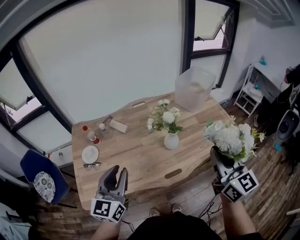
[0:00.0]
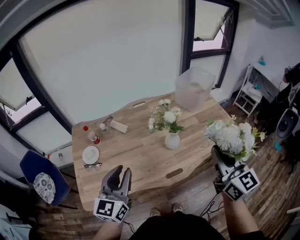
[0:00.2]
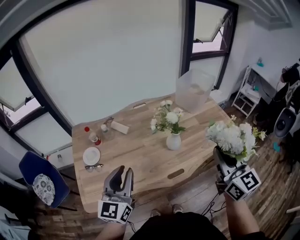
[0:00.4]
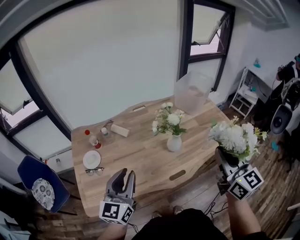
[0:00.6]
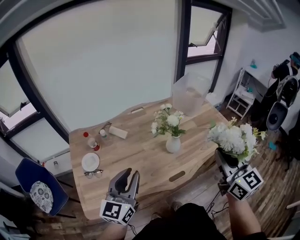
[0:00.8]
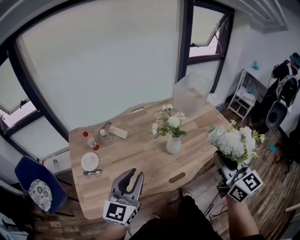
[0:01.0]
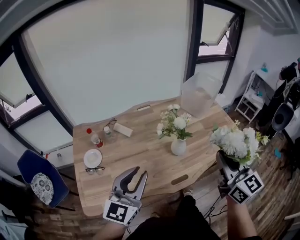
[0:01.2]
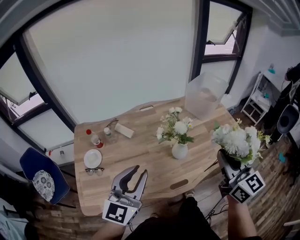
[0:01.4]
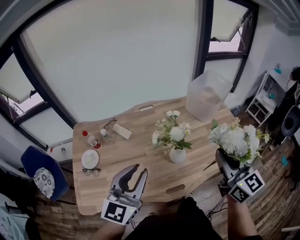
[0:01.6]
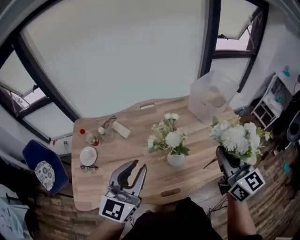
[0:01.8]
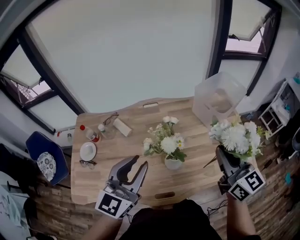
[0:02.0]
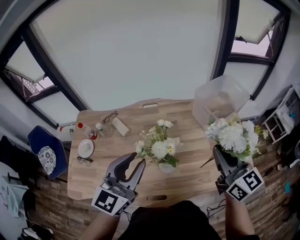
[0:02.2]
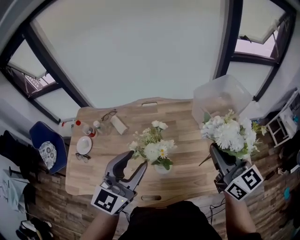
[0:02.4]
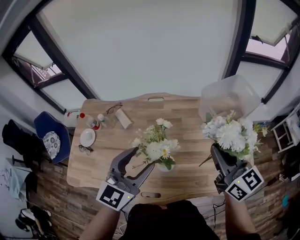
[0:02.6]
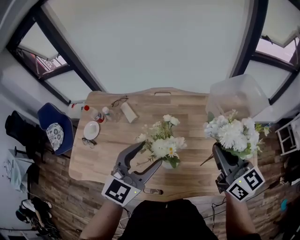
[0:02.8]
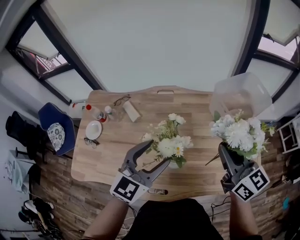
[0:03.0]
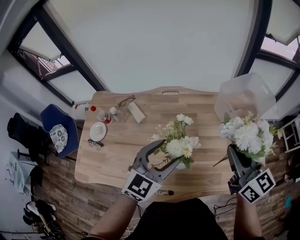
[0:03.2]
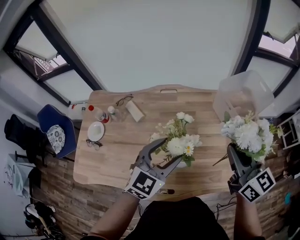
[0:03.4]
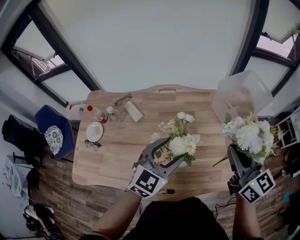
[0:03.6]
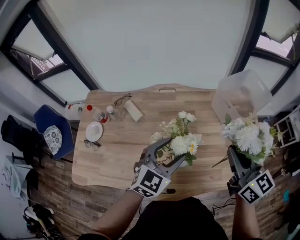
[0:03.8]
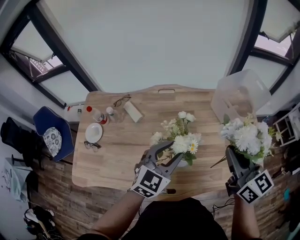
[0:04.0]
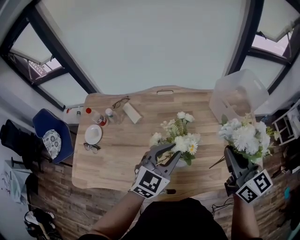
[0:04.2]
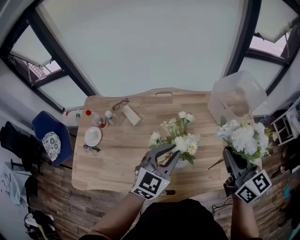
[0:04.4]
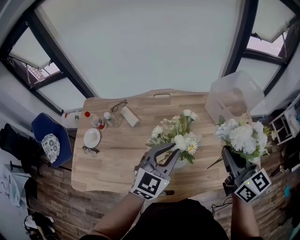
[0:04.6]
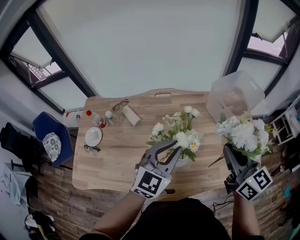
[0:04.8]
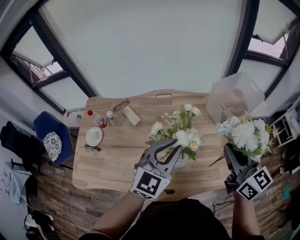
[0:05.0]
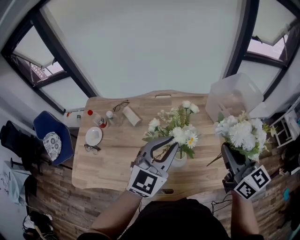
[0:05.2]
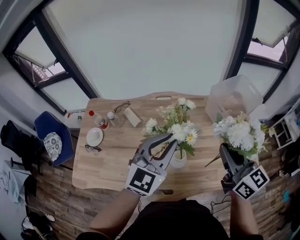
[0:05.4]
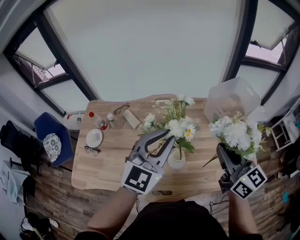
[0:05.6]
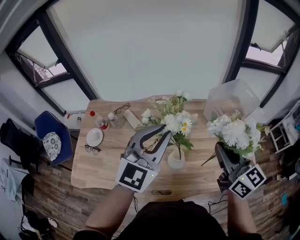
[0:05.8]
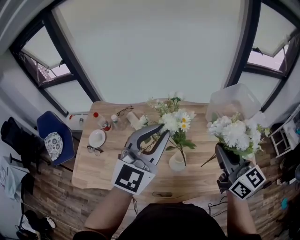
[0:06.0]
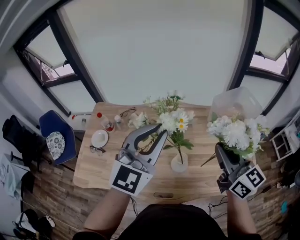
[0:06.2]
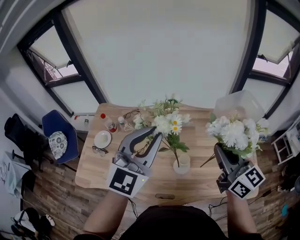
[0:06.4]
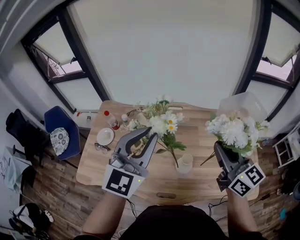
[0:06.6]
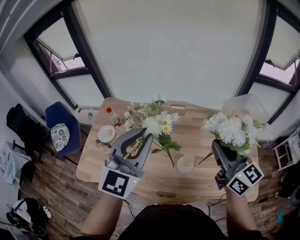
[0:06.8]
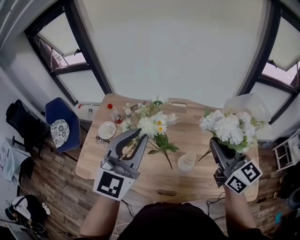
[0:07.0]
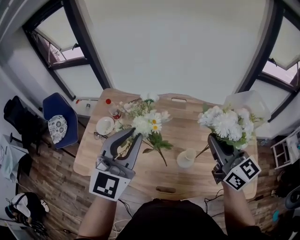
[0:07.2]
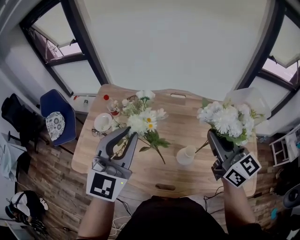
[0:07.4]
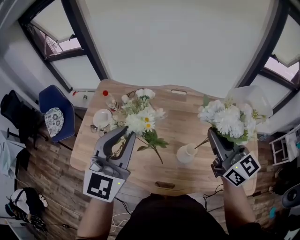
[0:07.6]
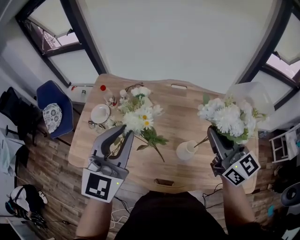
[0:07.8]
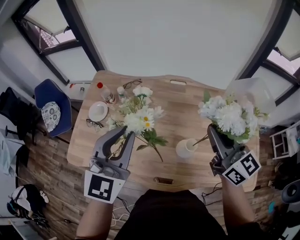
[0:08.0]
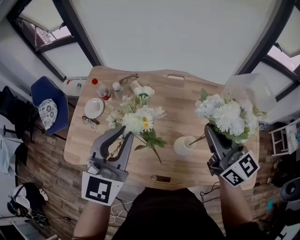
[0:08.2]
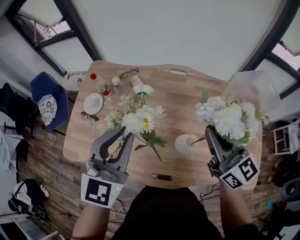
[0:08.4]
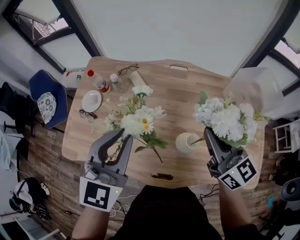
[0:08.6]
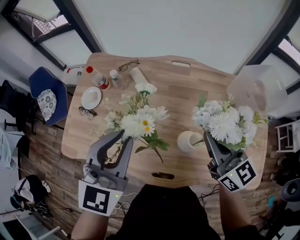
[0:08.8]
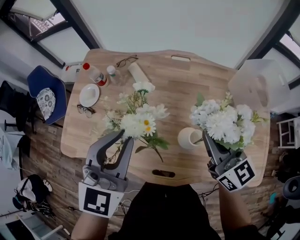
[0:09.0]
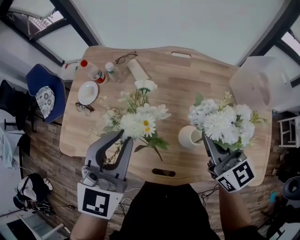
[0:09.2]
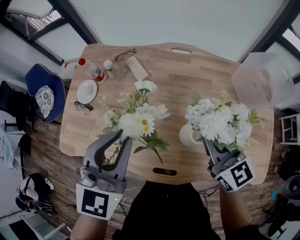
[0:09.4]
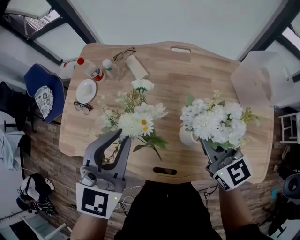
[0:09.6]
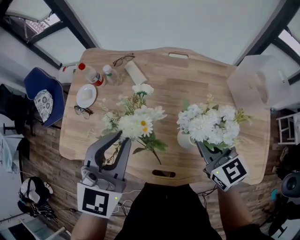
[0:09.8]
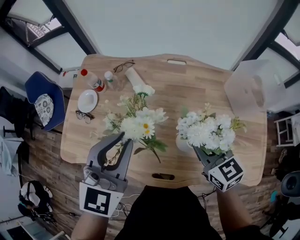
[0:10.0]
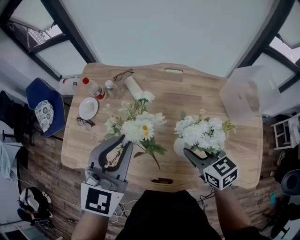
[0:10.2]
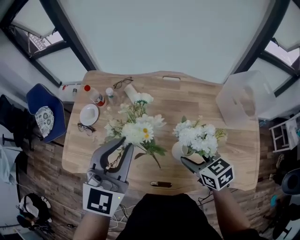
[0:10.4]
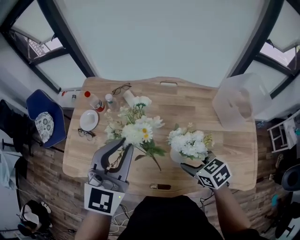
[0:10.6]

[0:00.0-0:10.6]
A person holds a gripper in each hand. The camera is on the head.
0:00.0 to 0:01.6: The right gripper moves forward, roughly 10 cm; the left gripper is displaced forward and to the right by about 10 cm.
0:01.6 to 0:03.0: The right gripper is displaced forward and to the right by roughly 20 cm, and changes its angle by roughly 30 degrees. The left gripper moves to the right and forward, approximately 20 cm, and opens.
0:03.0 to 0:04.6: The left gripper closes.
0:04.6 to 0:06.0: The left gripper shifts about 15 cm upward, while the right gripper shifts by some 5 cm.
0:06.0 to 0:07.6: The left gripper travels to the left by about 15 cm, and turns by about 20 degrees. The right gripper is displaced to the left by some 10 cm.
0:07.6 to 0:09.0: Both grippers move downward, some 10 cm.
0:09.0 to 0:10.6: The right gripper shifts some 10 cm downward, points its fingers some 40 degrees further downward, and opens its fingers.

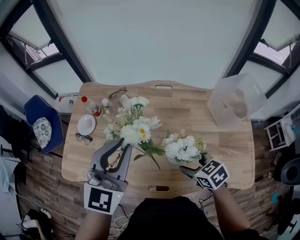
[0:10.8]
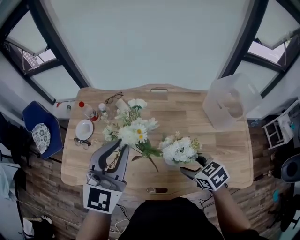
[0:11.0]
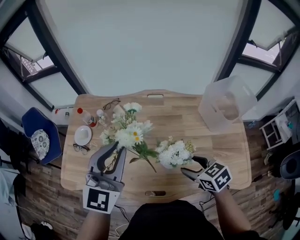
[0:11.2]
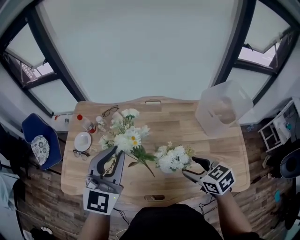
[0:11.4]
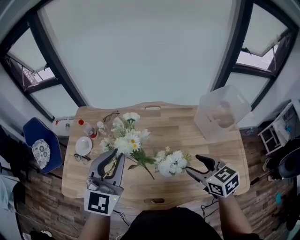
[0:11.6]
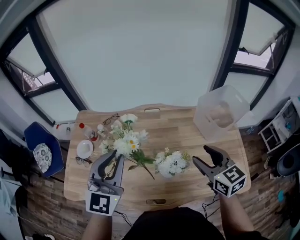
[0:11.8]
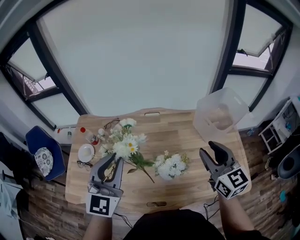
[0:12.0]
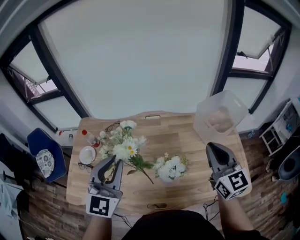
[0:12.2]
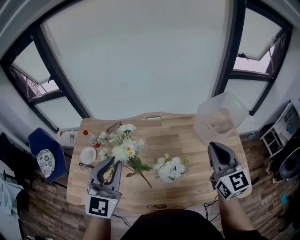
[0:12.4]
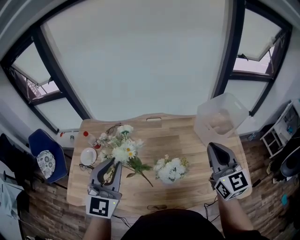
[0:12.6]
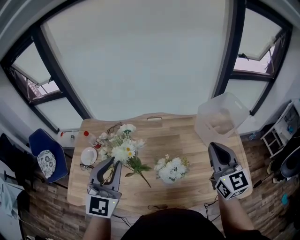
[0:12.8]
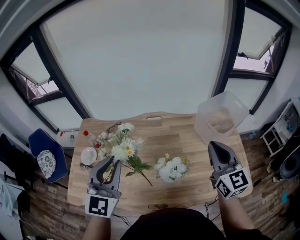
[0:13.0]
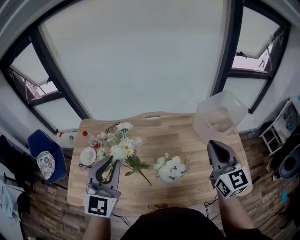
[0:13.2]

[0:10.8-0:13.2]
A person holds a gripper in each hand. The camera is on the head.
0:10.8 to 0:12.0: The right gripper goes approximately 25 cm upward and to the right, and angles its fingers upward, by some 40 degrees.
0:12.0 to 0:13.2: The right gripper closes its fingers.

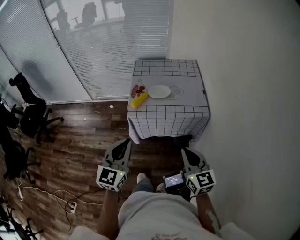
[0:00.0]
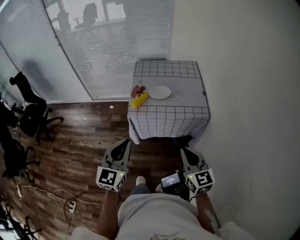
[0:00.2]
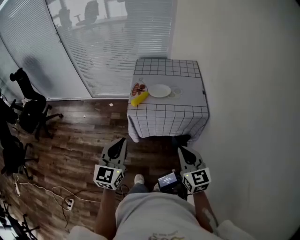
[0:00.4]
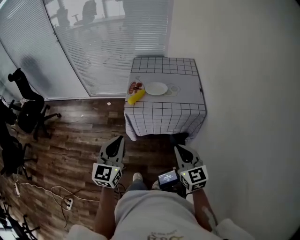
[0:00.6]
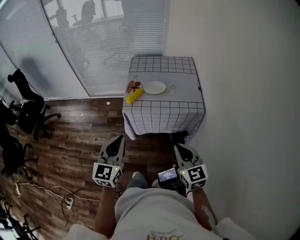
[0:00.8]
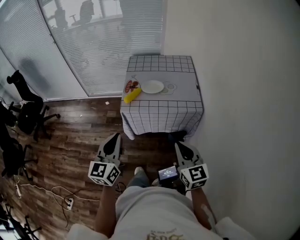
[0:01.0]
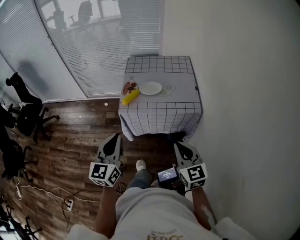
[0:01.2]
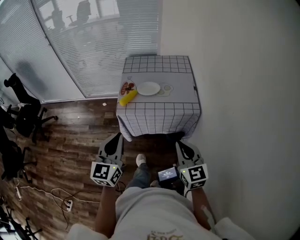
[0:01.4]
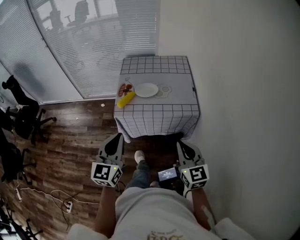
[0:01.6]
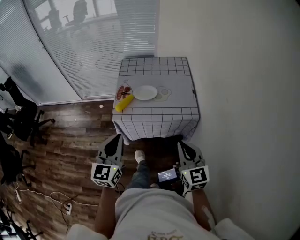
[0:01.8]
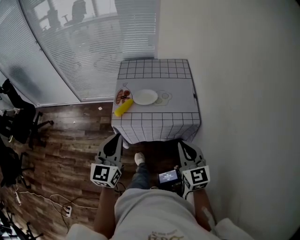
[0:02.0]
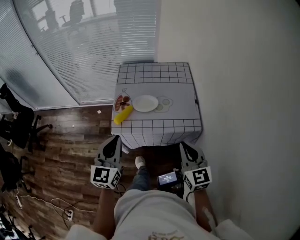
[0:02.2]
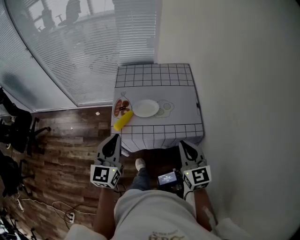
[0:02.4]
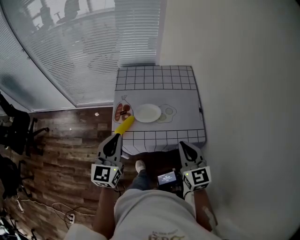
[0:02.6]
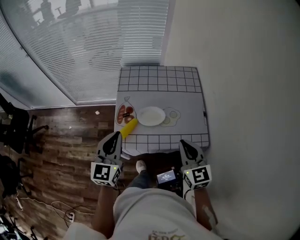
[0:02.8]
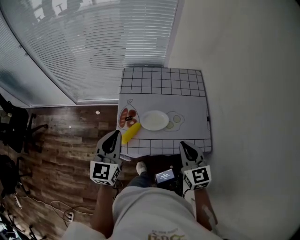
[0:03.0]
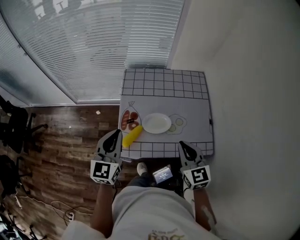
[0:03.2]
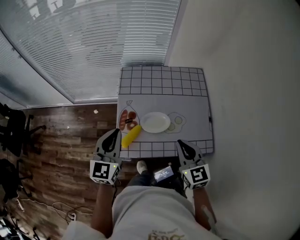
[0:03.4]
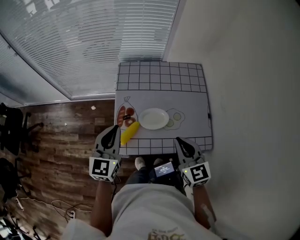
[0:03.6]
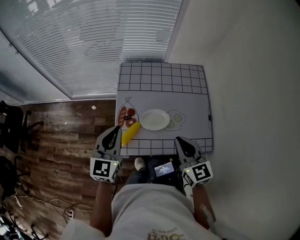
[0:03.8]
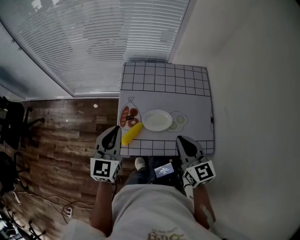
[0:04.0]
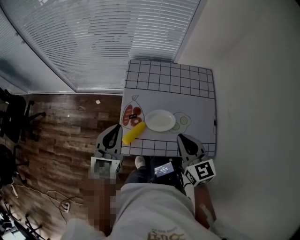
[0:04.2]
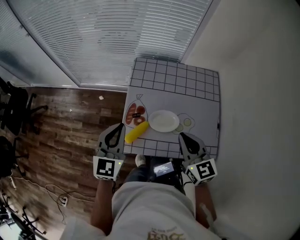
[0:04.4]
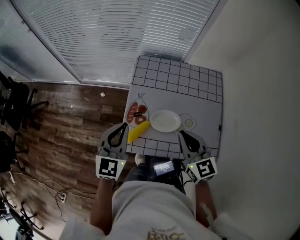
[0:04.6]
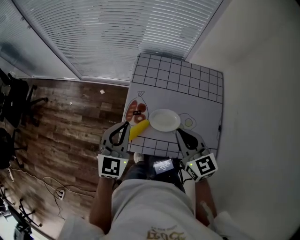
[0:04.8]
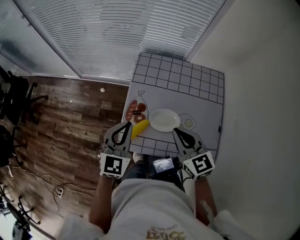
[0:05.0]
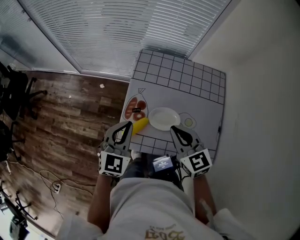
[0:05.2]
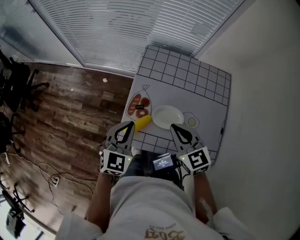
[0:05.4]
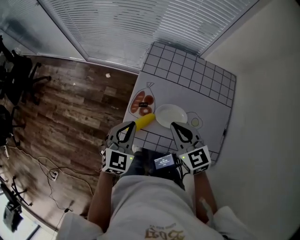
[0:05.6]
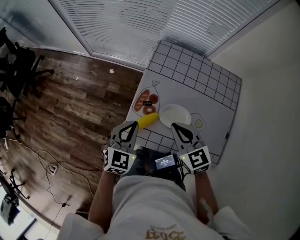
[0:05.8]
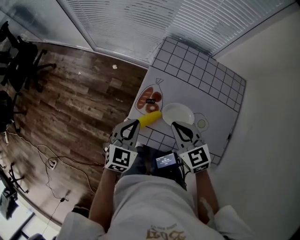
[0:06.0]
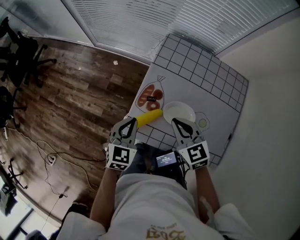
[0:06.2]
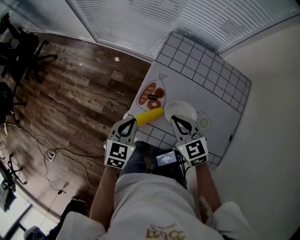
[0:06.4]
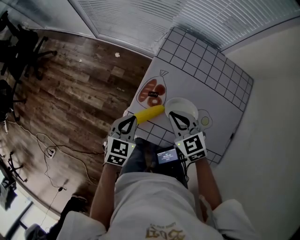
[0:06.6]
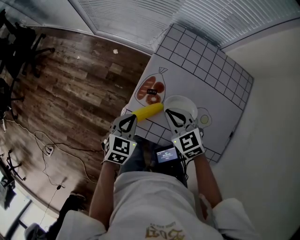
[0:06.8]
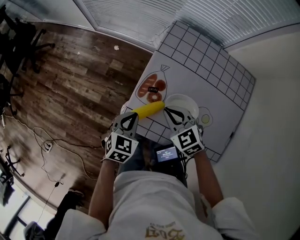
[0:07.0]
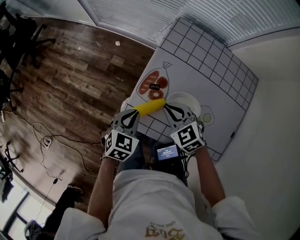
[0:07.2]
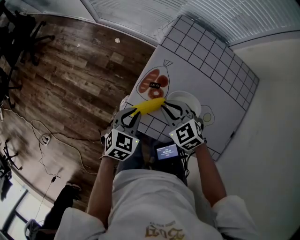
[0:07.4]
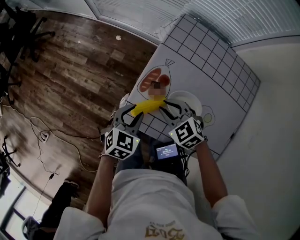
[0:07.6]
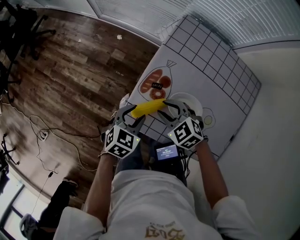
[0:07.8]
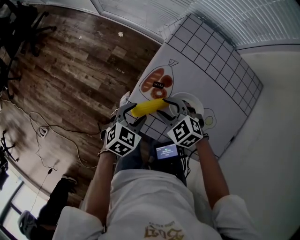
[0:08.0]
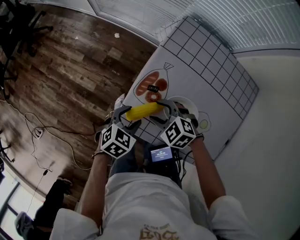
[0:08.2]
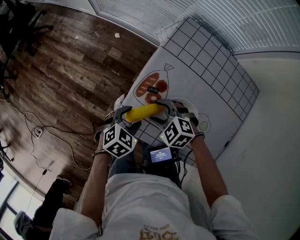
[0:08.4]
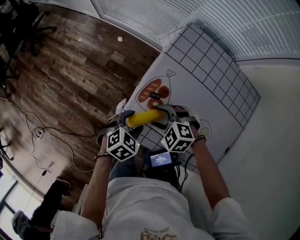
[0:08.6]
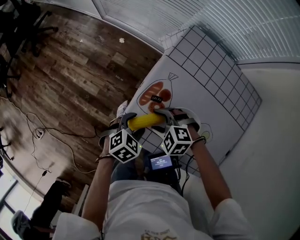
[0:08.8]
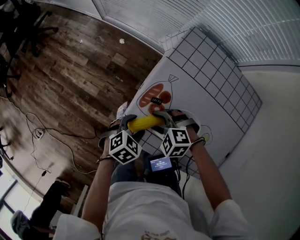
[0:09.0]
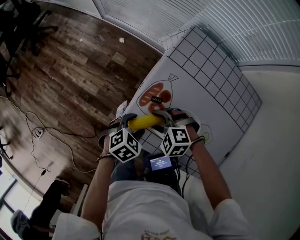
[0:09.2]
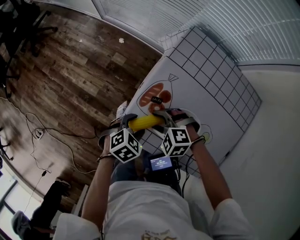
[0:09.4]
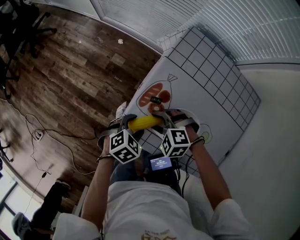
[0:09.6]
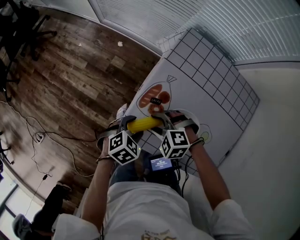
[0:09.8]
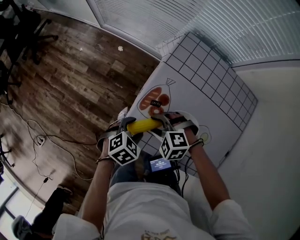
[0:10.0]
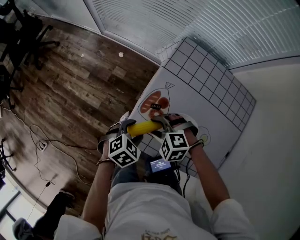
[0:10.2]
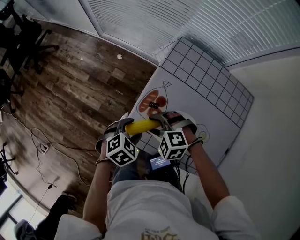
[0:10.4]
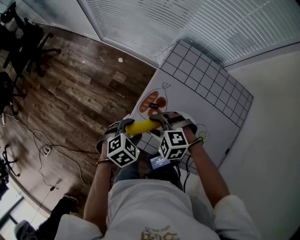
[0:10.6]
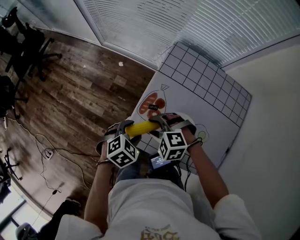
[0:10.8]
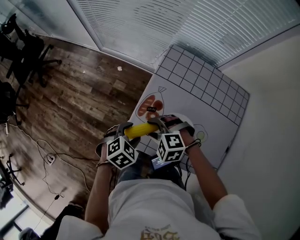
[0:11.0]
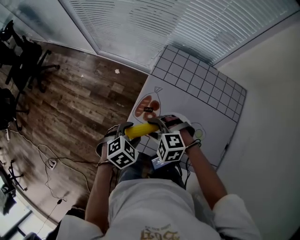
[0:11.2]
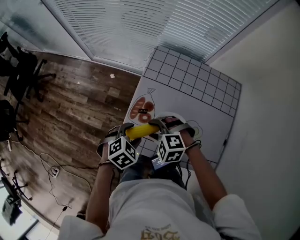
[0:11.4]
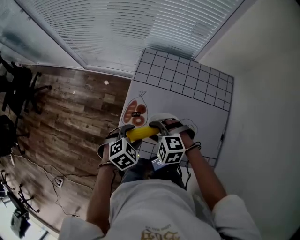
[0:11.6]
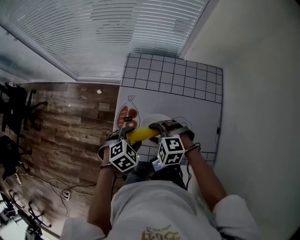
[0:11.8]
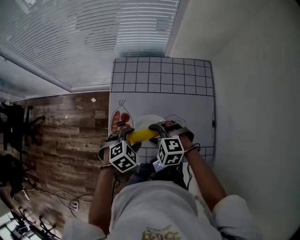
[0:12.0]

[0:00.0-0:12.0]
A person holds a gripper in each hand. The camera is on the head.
0:00.0 to 0:01.6: The left gripper shifts by some 5 cm; the right gripper is displaced to the right by approximately 5 cm.
0:01.6 to 0:03.0: Both grippers travel together forward, about 30 cm.
0:03.0 to 0:04.4: The left gripper heads forward, covering about 5 cm; the right gripper heads forward and to the left, covering about 10 cm.
0:04.4 to 0:06.0: The left gripper heads downward, covering roughly 10 cm. The right gripper is displaced downward, to the left and forward by about 15 cm, and rotates roughly 30 degrees.
0:06.0 to 0:07.6: Both grippers move downward, roughly 10 cm. The right gripper swivels about 30 degrees, while the left gripper opens its fingers.
0:07.6 to 0:09.0: The grippers both shift downward by some 5 cm. The left gripper opens, while the right gripper changes its angle by some 40 degrees, and opens.
0:09.0 to 0:10.4: The two grippers go some 5 cm upward.
0:10.4 to 0:12.0: The right gripper ends up about 15 cm from where it was, and changes its angle by roughly 30 degrees. The left gripper changes place by roughly 15 cm, and swivels about 30 degrees.
